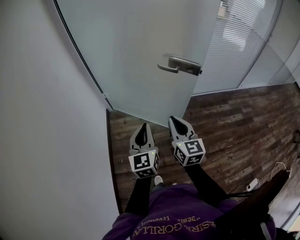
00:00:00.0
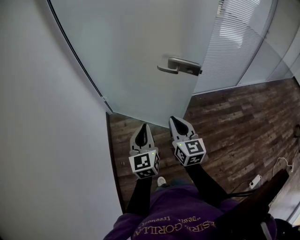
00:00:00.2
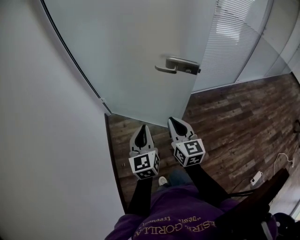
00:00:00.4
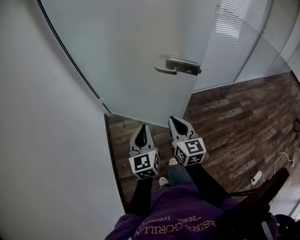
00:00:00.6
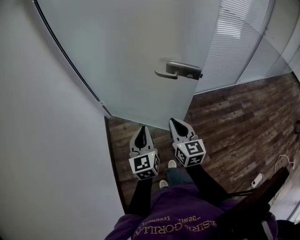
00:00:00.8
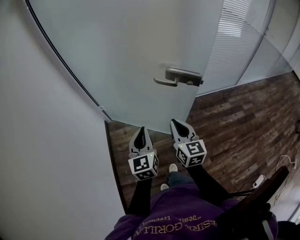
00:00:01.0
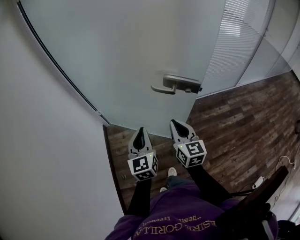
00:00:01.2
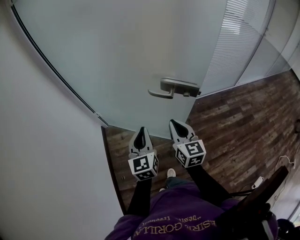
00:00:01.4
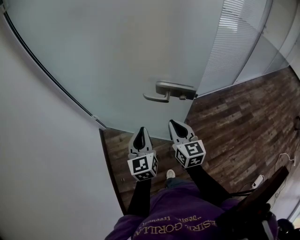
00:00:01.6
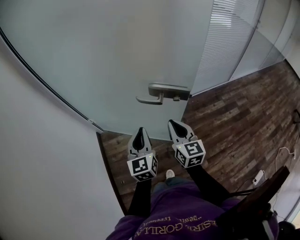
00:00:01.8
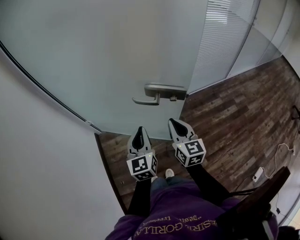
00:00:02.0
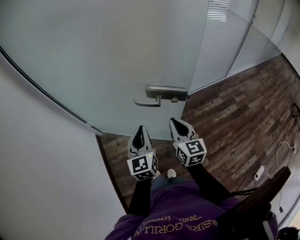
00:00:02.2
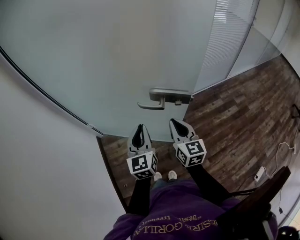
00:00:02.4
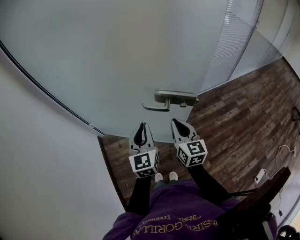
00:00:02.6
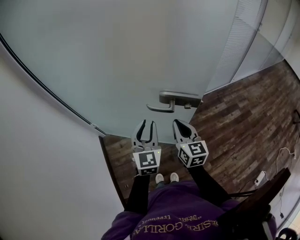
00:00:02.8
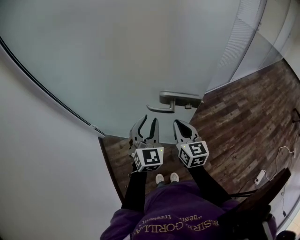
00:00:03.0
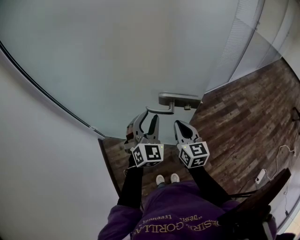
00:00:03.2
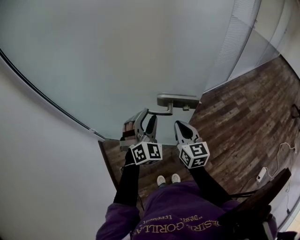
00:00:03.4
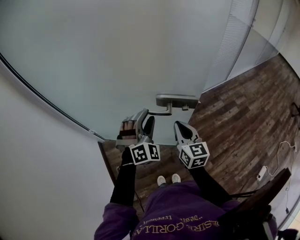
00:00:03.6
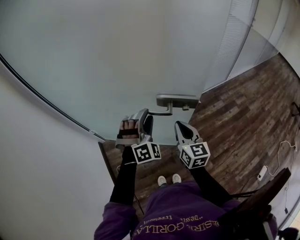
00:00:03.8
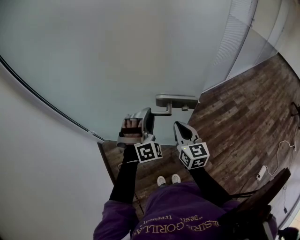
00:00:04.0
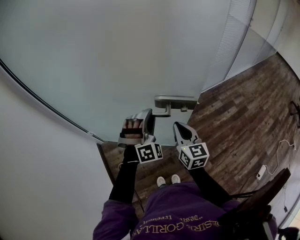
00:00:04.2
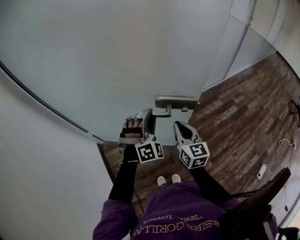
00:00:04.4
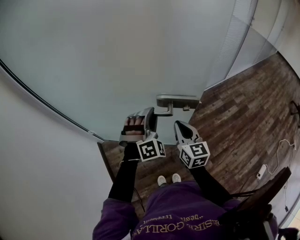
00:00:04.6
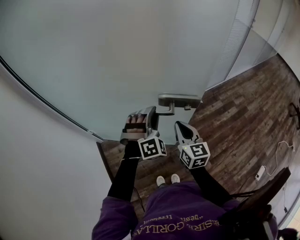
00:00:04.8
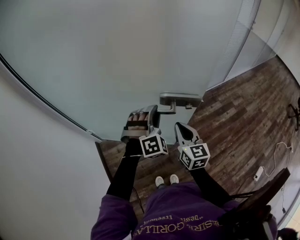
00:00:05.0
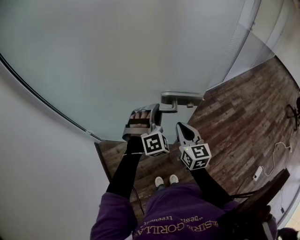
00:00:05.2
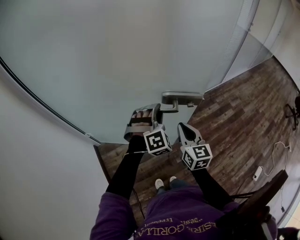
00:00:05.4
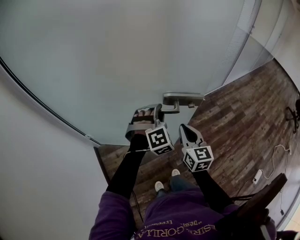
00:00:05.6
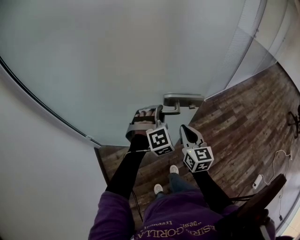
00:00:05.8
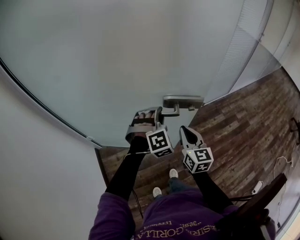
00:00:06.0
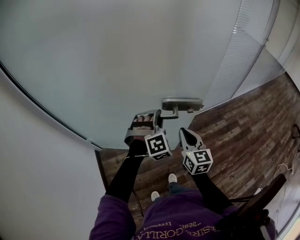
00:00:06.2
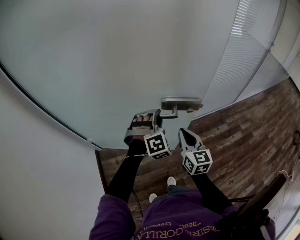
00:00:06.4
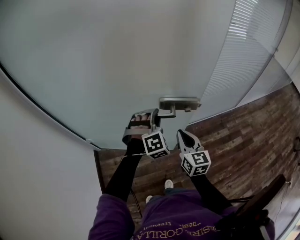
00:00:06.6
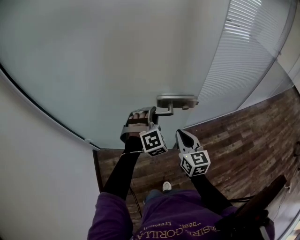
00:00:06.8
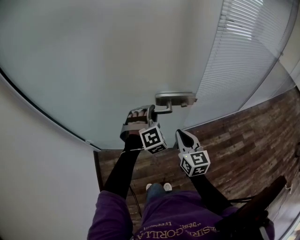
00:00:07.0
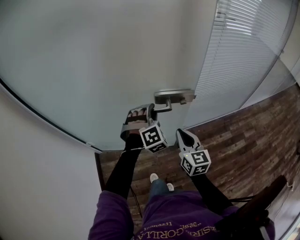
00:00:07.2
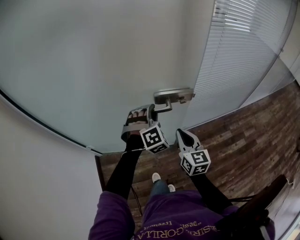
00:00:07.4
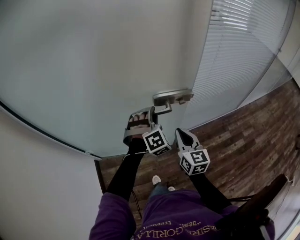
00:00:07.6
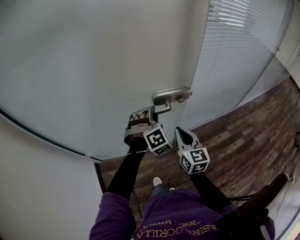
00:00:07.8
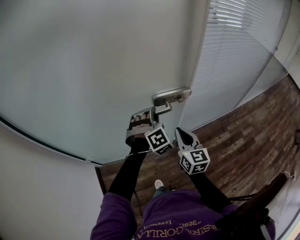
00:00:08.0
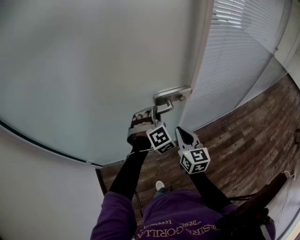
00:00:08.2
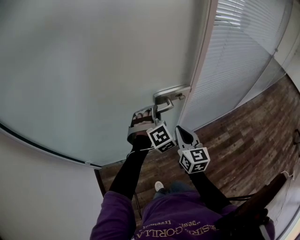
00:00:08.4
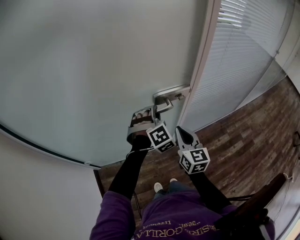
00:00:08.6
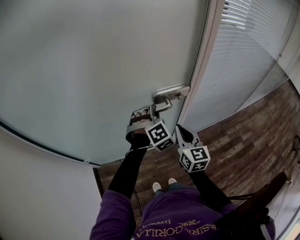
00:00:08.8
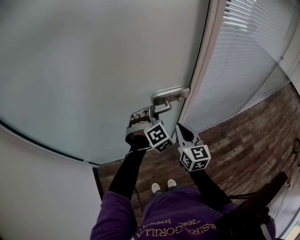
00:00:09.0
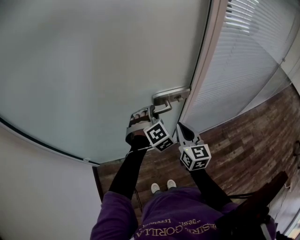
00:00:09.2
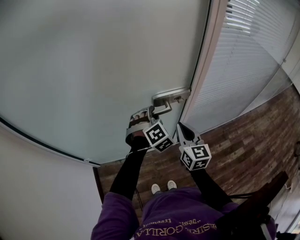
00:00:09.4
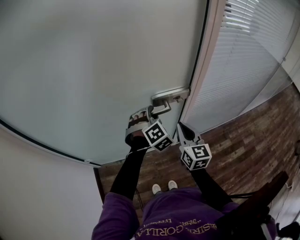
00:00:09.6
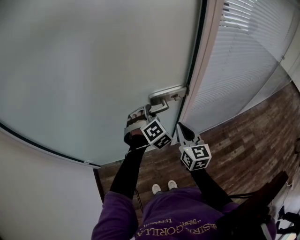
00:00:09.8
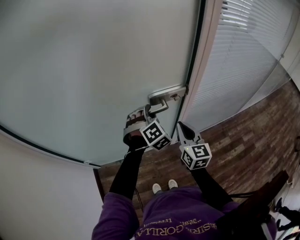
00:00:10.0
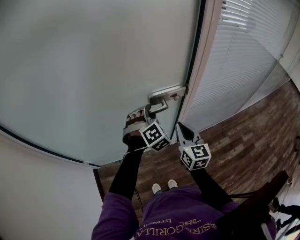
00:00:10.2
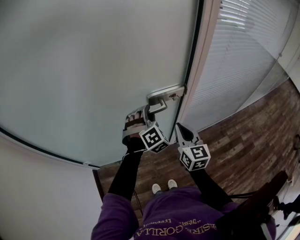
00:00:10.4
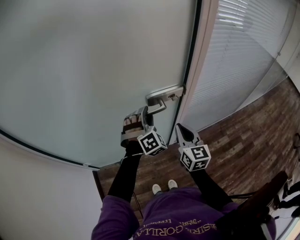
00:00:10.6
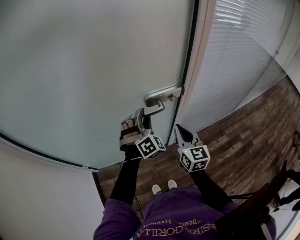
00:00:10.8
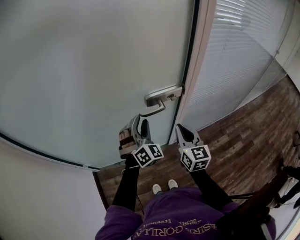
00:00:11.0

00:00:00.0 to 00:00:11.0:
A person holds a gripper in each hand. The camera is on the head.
00:00:00.0 to 00:00:01.6: The left gripper shifts approximately 20 cm forward. The right gripper moves forward and to the right, approximately 20 cm.
00:00:01.6 to 00:00:03.2: The left gripper goes approximately 10 cm forward, twists roughly 40 degrees clockwise, seen from behind, and opens up, while the right gripper moves forward, about 5 cm.
00:00:03.2 to 00:00:04.8: The left gripper rotates approximately 40 degrees.
00:00:04.8 to 00:00:06.2: Both grippers move forward, about 15 cm.
00:00:06.2 to 00:00:07.8: Both grippers travel together forward, some 20 cm.
00:00:07.8 to 00:00:09.4: Both grippers move forward, about 5 cm.
00:00:09.4 to 00:00:11.0: The left gripper turns by about 20 degrees.

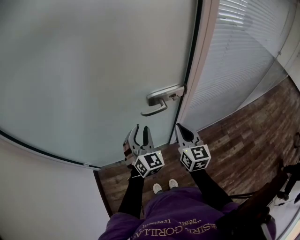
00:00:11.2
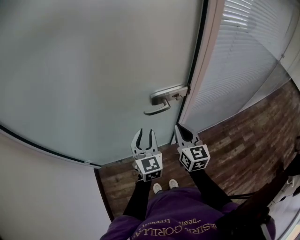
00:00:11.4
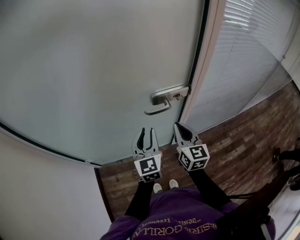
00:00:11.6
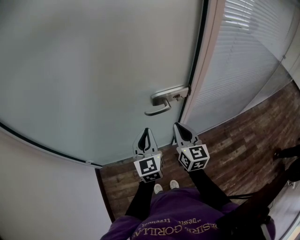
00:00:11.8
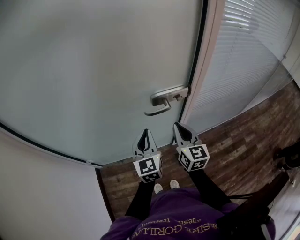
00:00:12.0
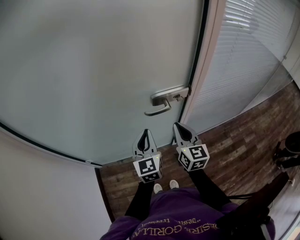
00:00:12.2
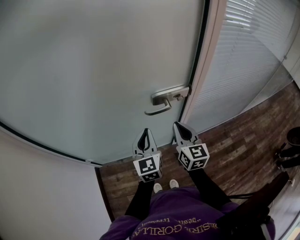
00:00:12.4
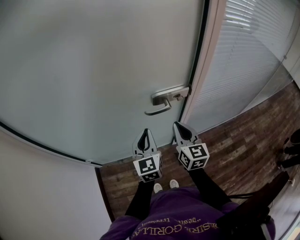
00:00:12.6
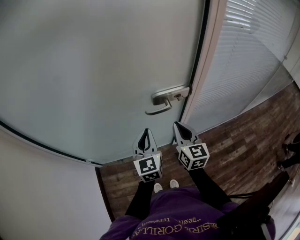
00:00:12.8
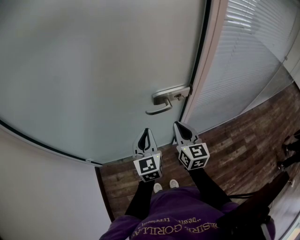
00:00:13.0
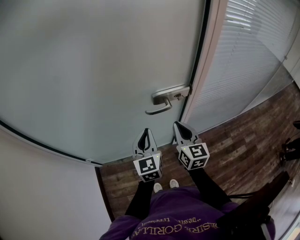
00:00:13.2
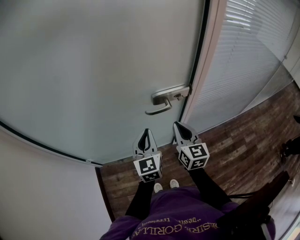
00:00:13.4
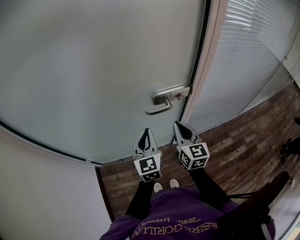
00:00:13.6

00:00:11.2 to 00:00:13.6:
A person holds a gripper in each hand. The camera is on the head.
00:00:11.2 to 00:00:12.4: The left gripper rotates approximately 30 degrees, and closes.
00:00:12.4 to 00:00:13.6: Both grippers stay about where they are.

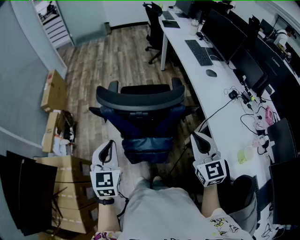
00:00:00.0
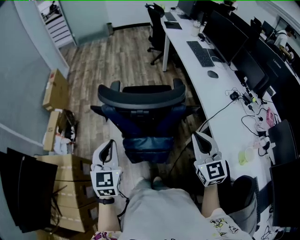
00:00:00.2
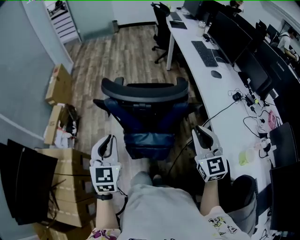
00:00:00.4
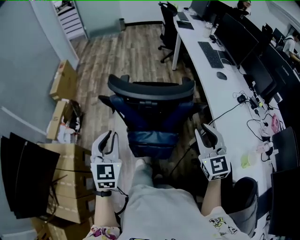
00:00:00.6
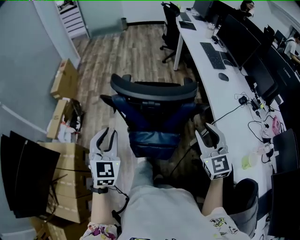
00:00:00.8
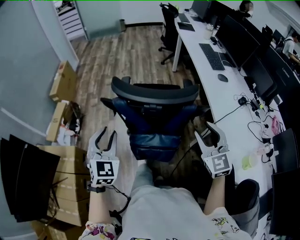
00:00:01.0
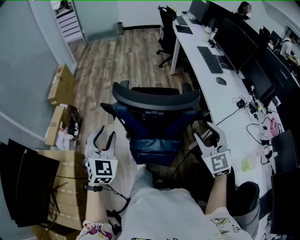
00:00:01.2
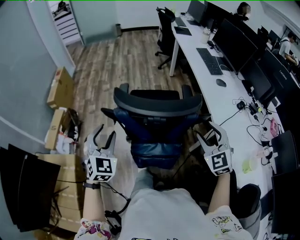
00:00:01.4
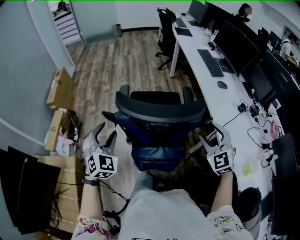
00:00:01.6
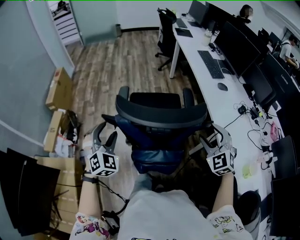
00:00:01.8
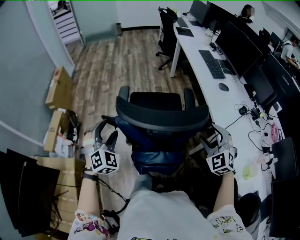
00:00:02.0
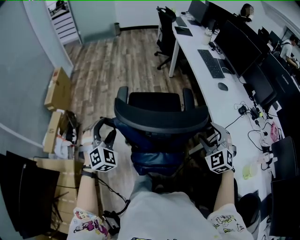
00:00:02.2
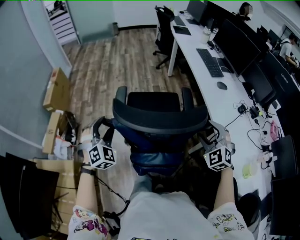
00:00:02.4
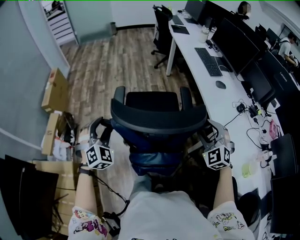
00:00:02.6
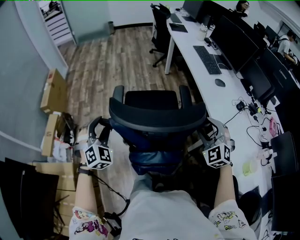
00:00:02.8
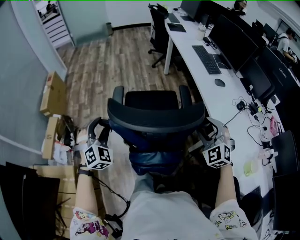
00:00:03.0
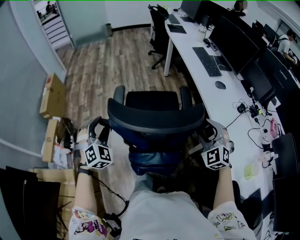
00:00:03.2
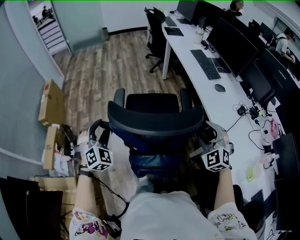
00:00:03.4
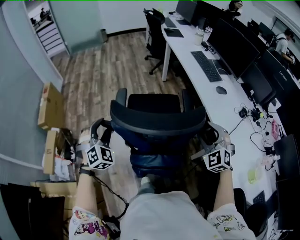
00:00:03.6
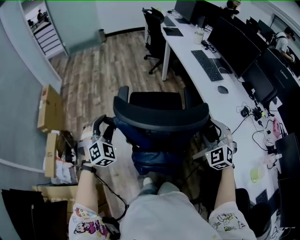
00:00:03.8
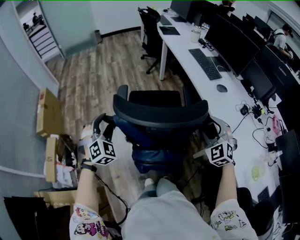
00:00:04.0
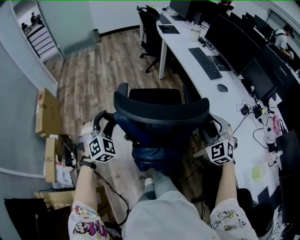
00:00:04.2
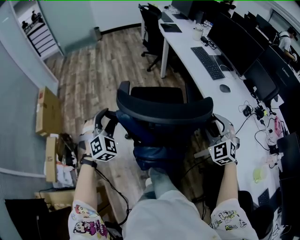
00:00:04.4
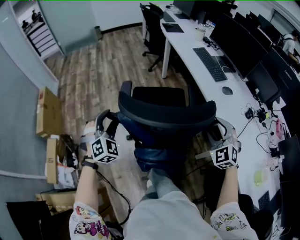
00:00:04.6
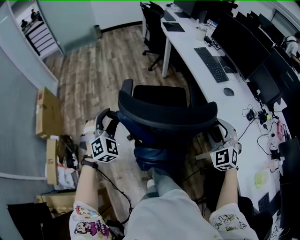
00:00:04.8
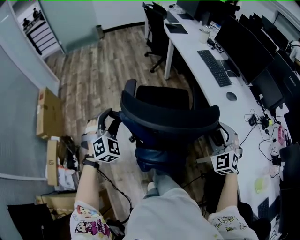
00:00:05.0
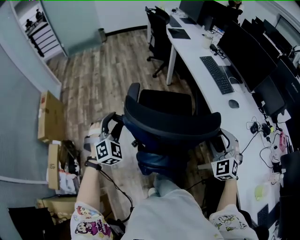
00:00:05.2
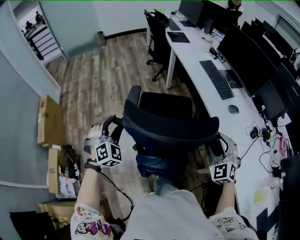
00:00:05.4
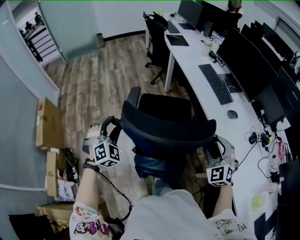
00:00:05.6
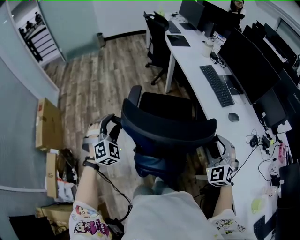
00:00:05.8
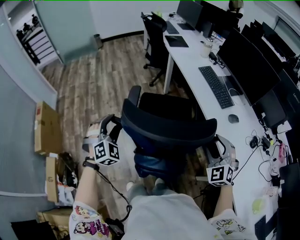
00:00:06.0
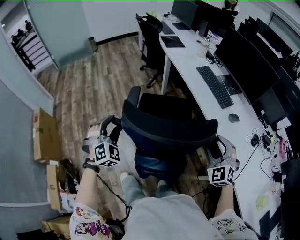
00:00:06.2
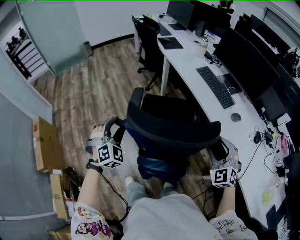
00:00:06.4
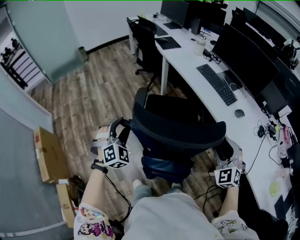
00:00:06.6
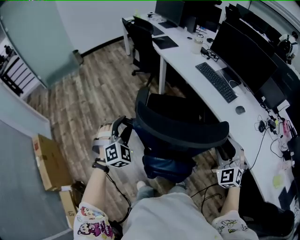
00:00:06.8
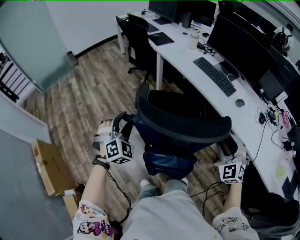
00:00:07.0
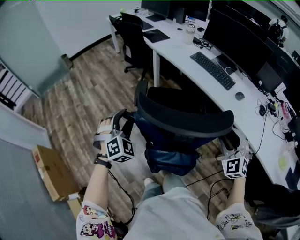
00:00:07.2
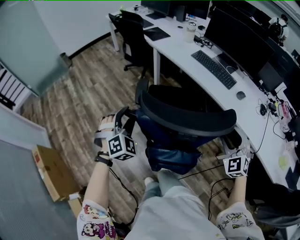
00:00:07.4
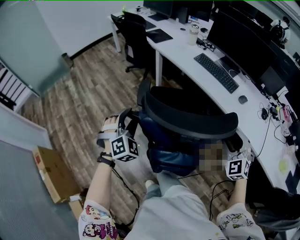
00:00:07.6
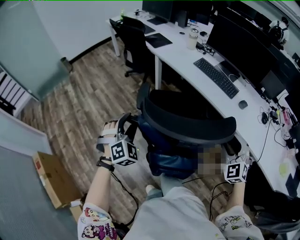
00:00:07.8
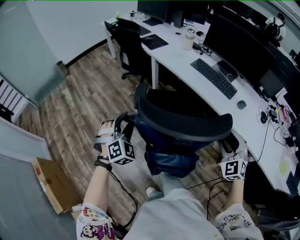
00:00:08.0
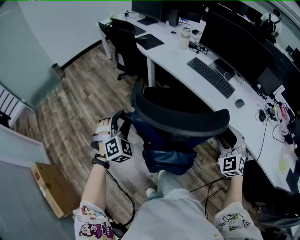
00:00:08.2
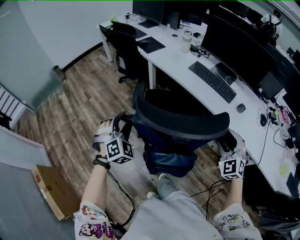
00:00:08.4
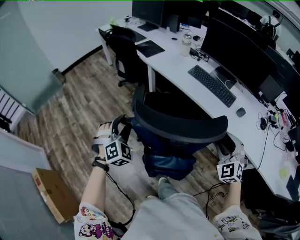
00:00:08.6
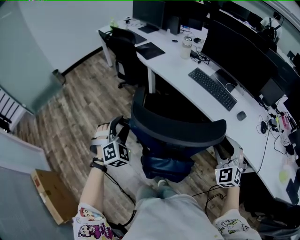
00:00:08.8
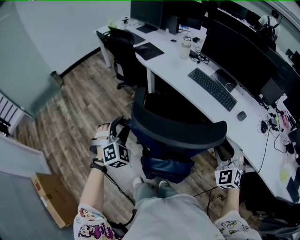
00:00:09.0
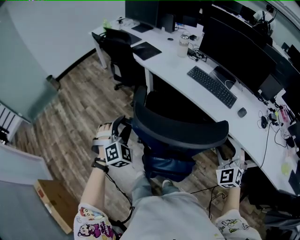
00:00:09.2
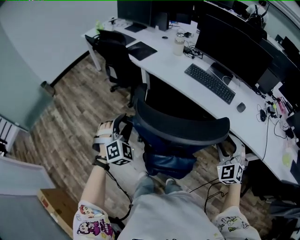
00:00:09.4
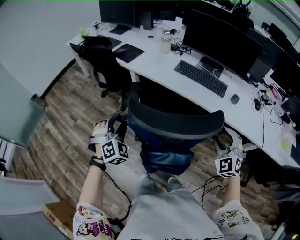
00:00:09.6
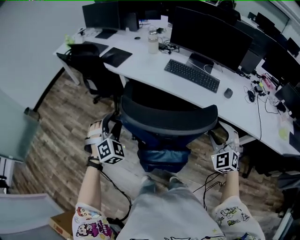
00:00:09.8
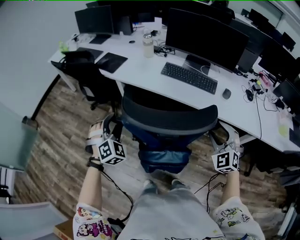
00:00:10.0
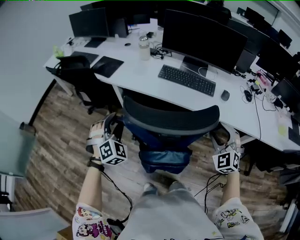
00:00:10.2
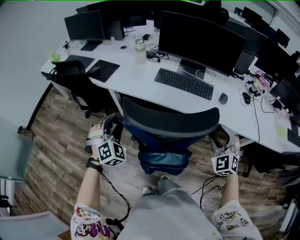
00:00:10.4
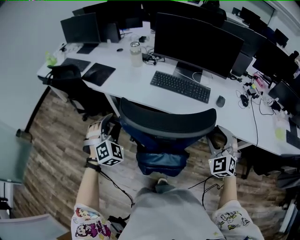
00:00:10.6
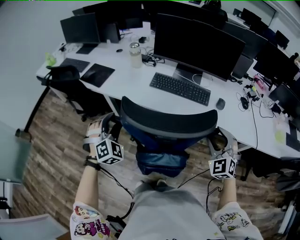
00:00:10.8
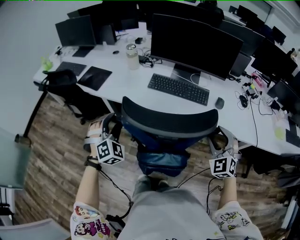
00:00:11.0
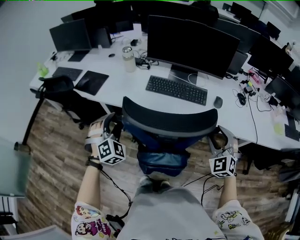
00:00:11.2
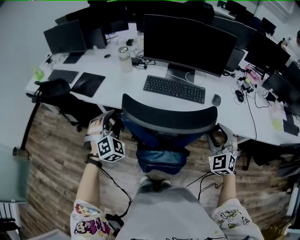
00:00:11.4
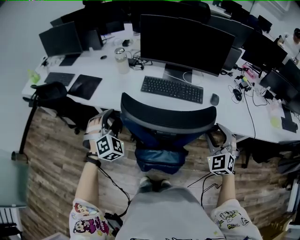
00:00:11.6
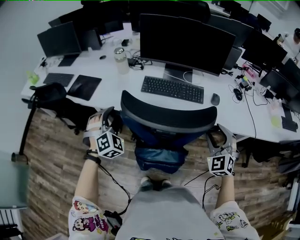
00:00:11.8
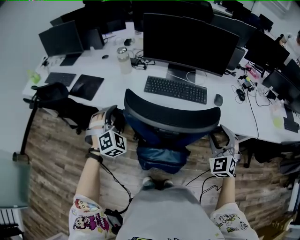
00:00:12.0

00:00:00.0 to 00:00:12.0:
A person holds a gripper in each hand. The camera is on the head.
00:00:00.0 to 00:00:01.6: The left gripper travels forward and to the left by approximately 10 cm, rotates some 30 degrees, and opens up. The right gripper shifts some 5 cm forward, rotates some 30 degrees, and opens.
00:00:01.6 to 00:00:03.0: Both grippers travel together forward, some 10 cm.
00:00:03.0 to 00:00:04.4: The two grippers go some 15 cm forward.
00:00:04.4 to 00:00:06.0: Both grippers move forward, roughly 15 cm.
00:00:06.0 to 00:00:07.6: The left gripper shifts approximately 15 cm forward and to the left, and changes its angle by approximately 20 degrees; the right gripper shifts roughly 10 cm to the left, and turns by some 20 degrees.
00:00:07.6 to 00:00:09.0: The grippers both shift forward by some 15 cm.
00:00:09.0 to 00:00:10.4: The right gripper goes approximately 5 cm forward, and rotates approximately 20 degrees; the left gripper heads forward, covering some 20 cm, and swivels about 20 degrees.
00:00:10.4 to 00:00:12.0: The left gripper goes some 15 cm forward. The right gripper travels forward by approximately 5 cm.
